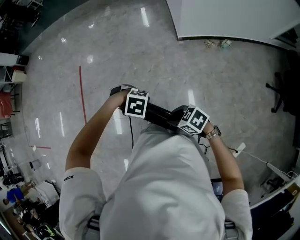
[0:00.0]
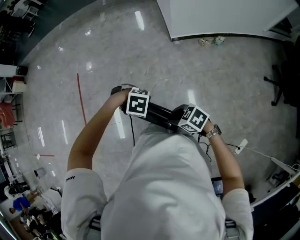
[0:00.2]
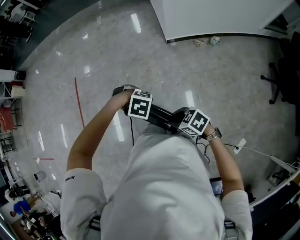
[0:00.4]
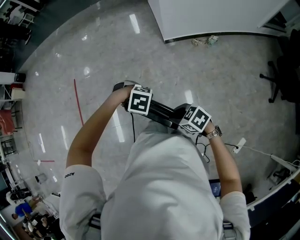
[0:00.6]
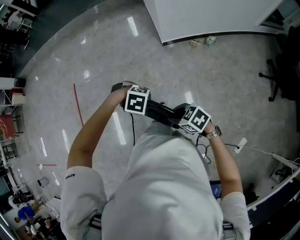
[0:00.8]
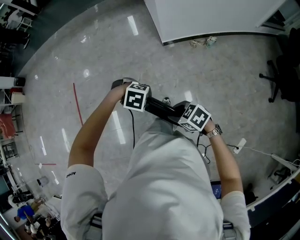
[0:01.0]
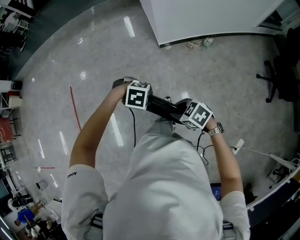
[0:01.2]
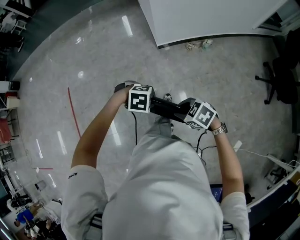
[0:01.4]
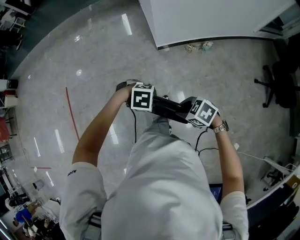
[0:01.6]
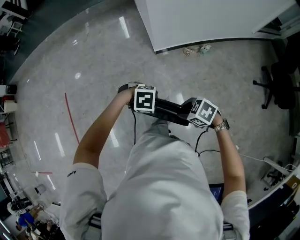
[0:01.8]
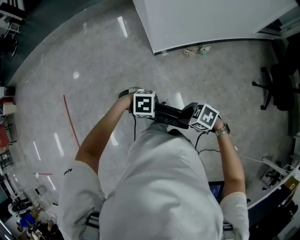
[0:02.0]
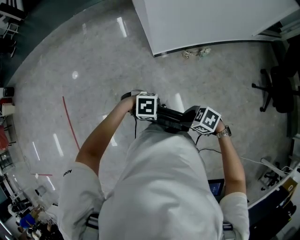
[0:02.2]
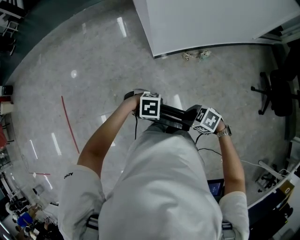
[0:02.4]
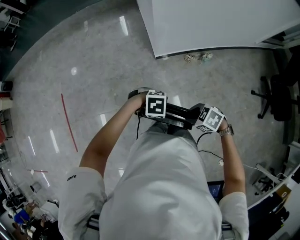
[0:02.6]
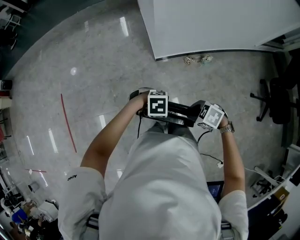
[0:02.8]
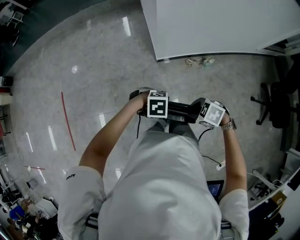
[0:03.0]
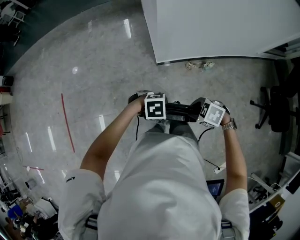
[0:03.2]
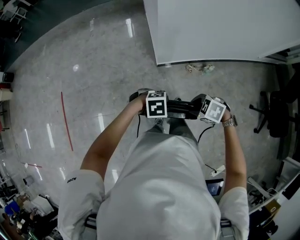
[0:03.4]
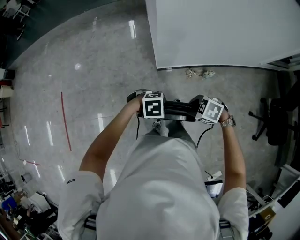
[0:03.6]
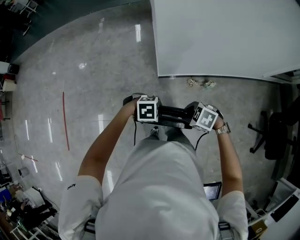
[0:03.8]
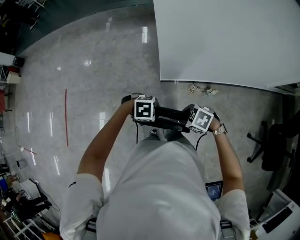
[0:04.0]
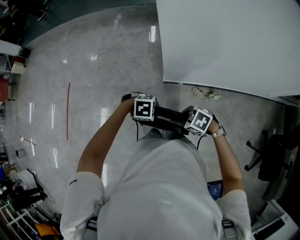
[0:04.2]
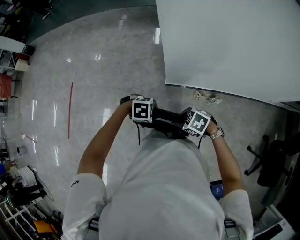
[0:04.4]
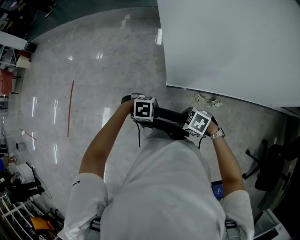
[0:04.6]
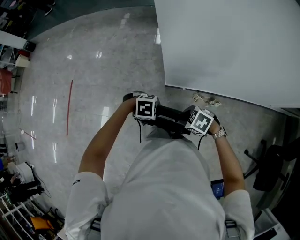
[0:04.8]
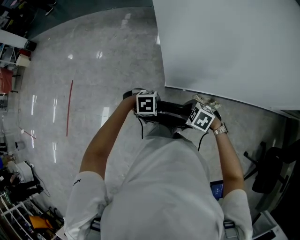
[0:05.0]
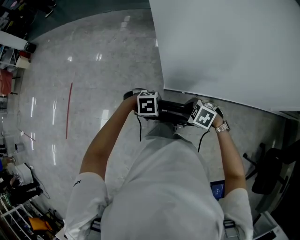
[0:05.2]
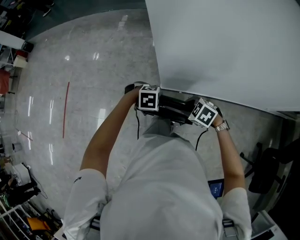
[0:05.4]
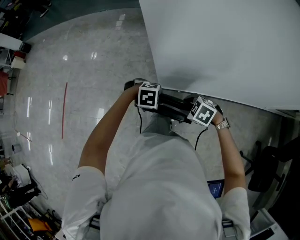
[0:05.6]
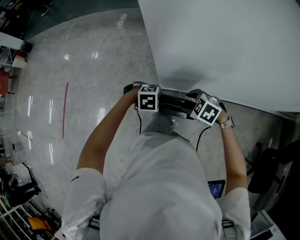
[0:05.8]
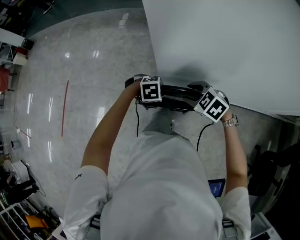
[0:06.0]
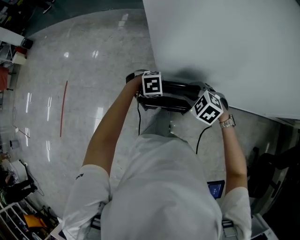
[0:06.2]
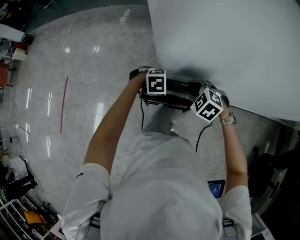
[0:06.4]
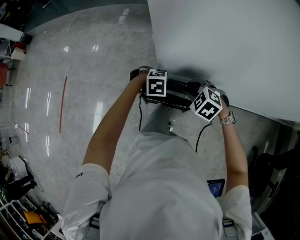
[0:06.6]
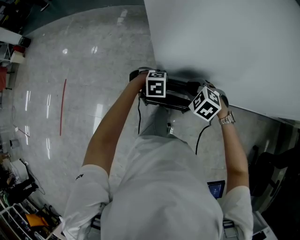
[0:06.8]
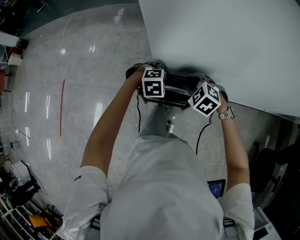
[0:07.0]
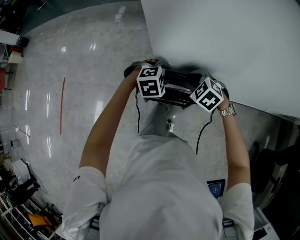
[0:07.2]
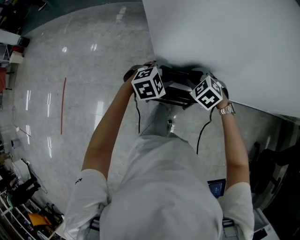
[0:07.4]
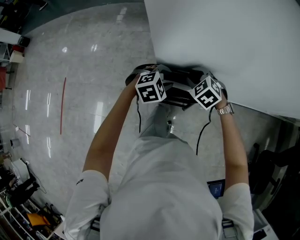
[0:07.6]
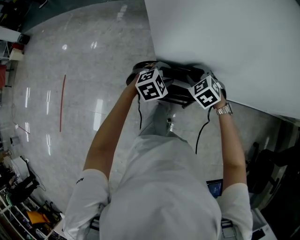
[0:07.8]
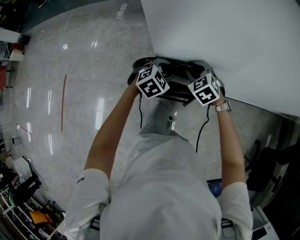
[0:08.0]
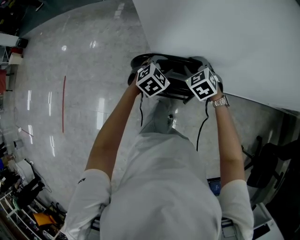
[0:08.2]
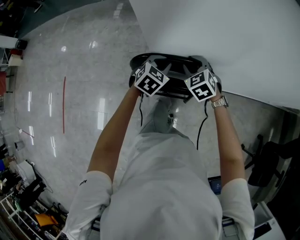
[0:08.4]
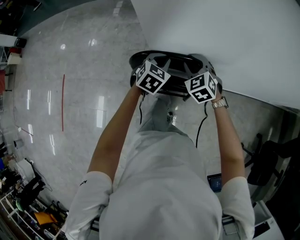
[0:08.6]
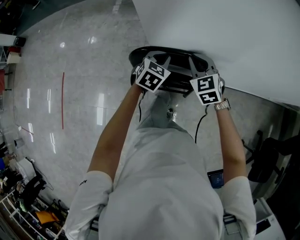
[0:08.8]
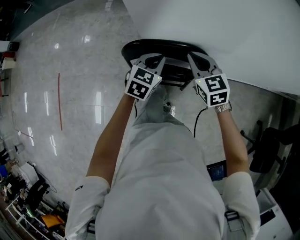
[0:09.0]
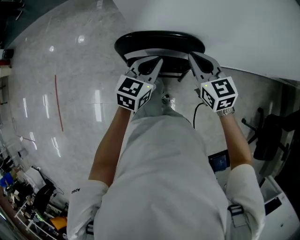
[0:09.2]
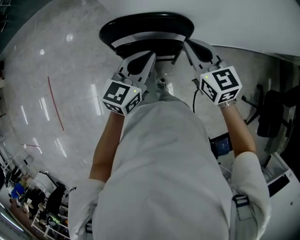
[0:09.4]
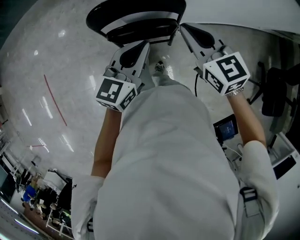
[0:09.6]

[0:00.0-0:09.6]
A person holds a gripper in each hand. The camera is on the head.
0:00.0 to 0:01.6: Both grippers move backward, approximately 25 cm.
0:01.6 to 0:03.2: Both grippers move backward, approximately 20 cm.
0:03.2 to 0:04.8: The grippers both shift backward by roughly 20 cm.
0:04.8 to 0:06.4: The left gripper ends up some 20 cm from where it was, while the right gripper moves some 20 cm, and turns by approximately 30 degrees.
0:06.4 to 0:08.0: The left gripper changes place by some 10 cm, and rotates some 30 degrees, while the right gripper changes place by some 10 cm, and turns by some 20 degrees.
0:08.0 to 0:09.6: The left gripper goes some 20 cm backward and upward, points its fingers roughly 30 degrees further upward, and closes, while the right gripper goes roughly 20 cm backward, upward and to the right, changes its angle by roughly 40 degrees, and closes its fingers.

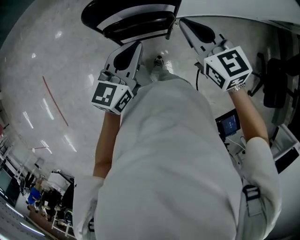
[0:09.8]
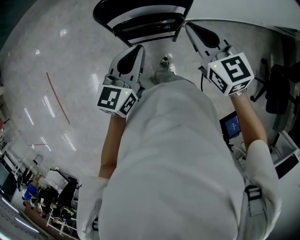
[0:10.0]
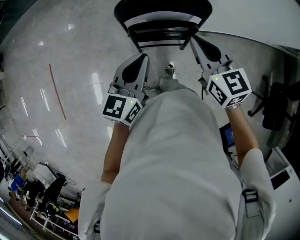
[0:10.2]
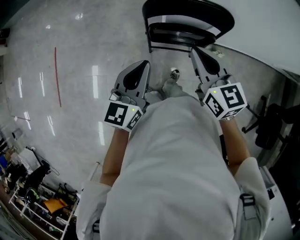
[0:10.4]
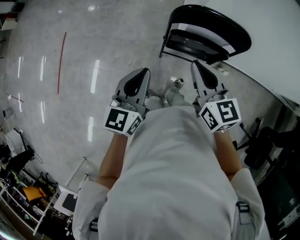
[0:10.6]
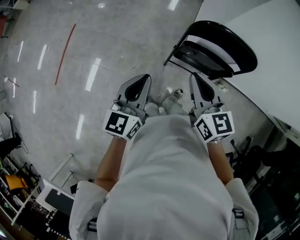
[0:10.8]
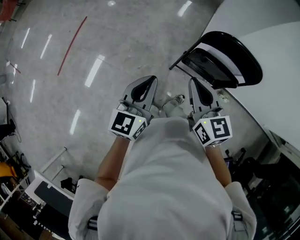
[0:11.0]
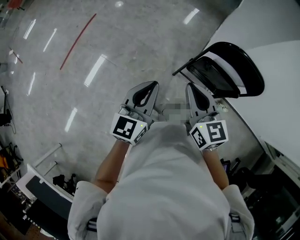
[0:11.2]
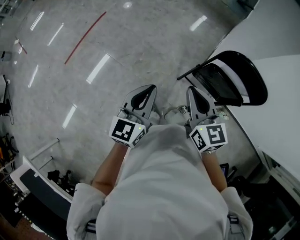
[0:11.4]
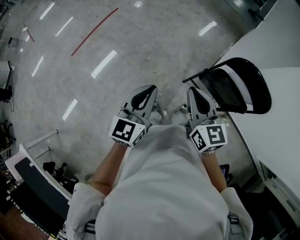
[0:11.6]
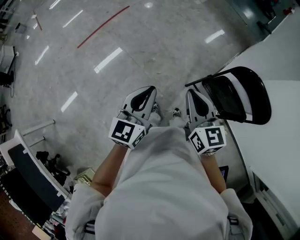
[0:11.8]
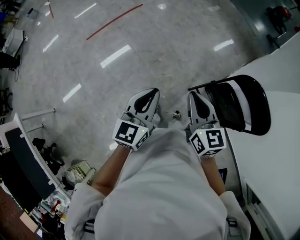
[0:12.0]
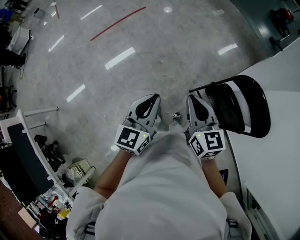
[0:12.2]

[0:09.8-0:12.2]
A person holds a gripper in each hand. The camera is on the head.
0:09.8 to 0:11.0: The right gripper changes place by roughly 35 cm, and rotates about 20 degrees. The left gripper moves about 35 cm, and turns by some 40 degrees.
0:11.0 to 0:12.2: The right gripper shifts by approximately 10 cm, and swivels approximately 30 degrees, while the left gripper moves approximately 15 cm, and turns by approximately 30 degrees.

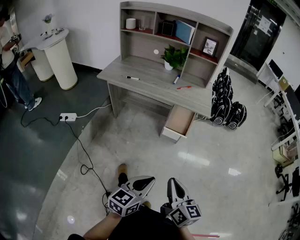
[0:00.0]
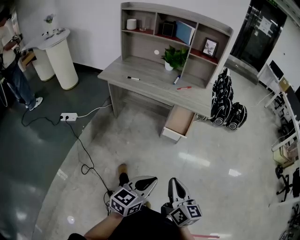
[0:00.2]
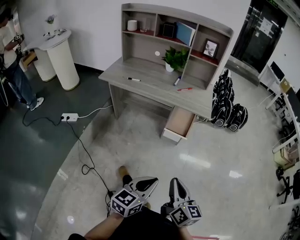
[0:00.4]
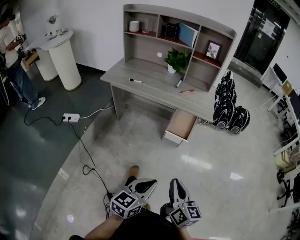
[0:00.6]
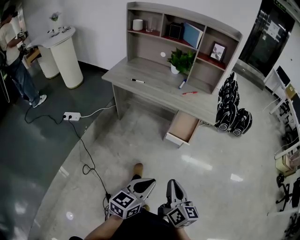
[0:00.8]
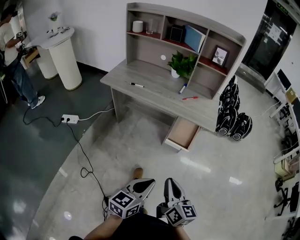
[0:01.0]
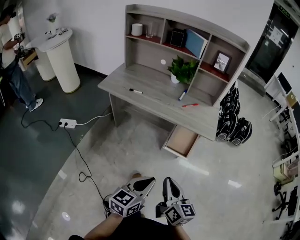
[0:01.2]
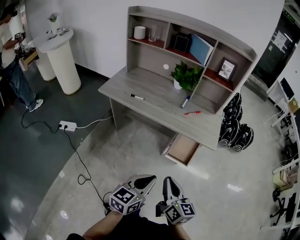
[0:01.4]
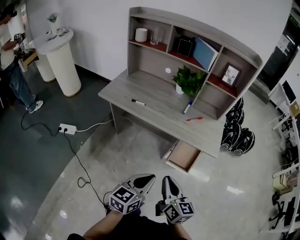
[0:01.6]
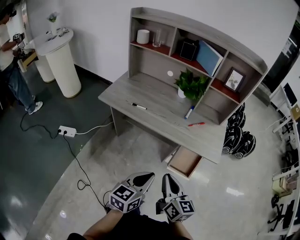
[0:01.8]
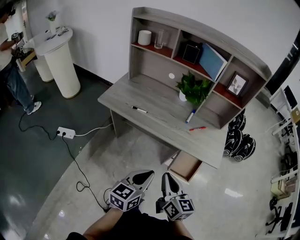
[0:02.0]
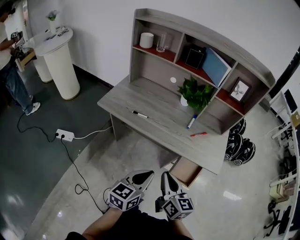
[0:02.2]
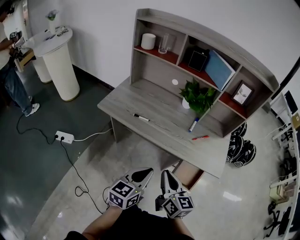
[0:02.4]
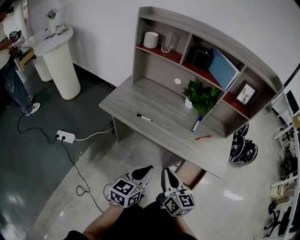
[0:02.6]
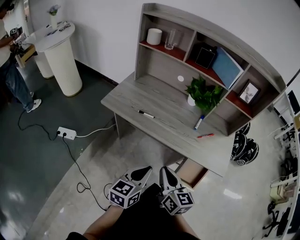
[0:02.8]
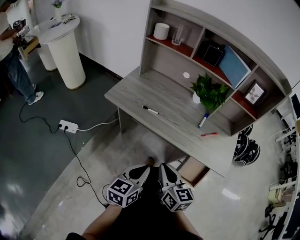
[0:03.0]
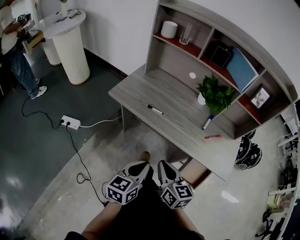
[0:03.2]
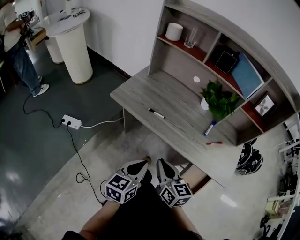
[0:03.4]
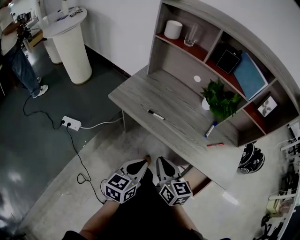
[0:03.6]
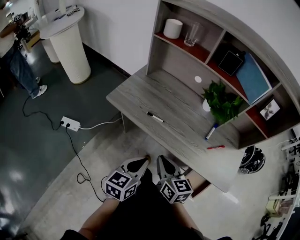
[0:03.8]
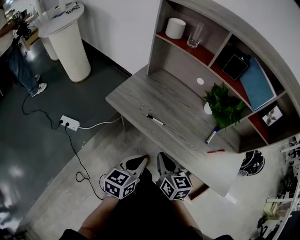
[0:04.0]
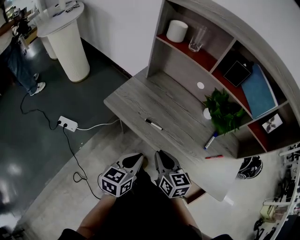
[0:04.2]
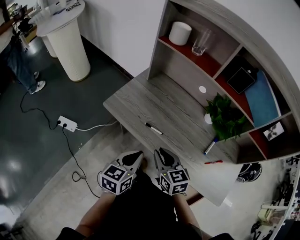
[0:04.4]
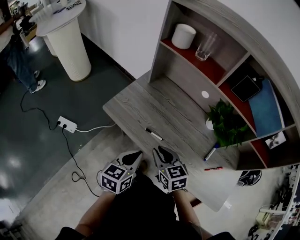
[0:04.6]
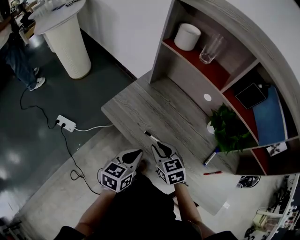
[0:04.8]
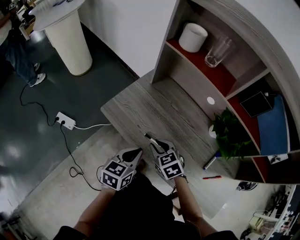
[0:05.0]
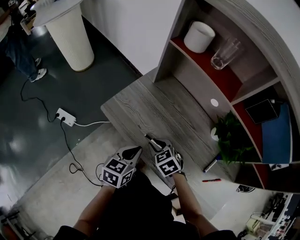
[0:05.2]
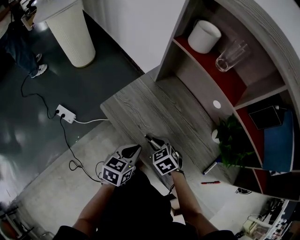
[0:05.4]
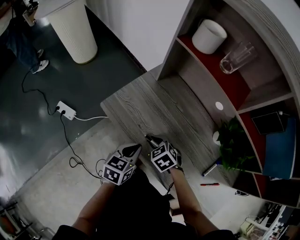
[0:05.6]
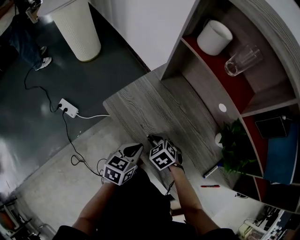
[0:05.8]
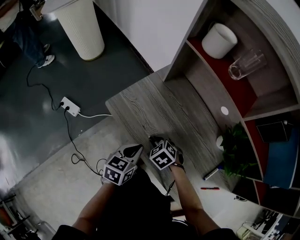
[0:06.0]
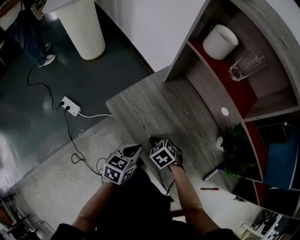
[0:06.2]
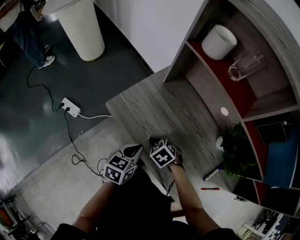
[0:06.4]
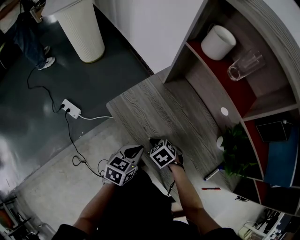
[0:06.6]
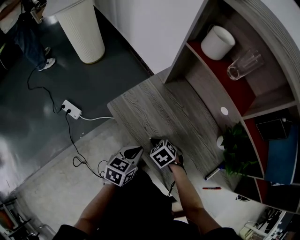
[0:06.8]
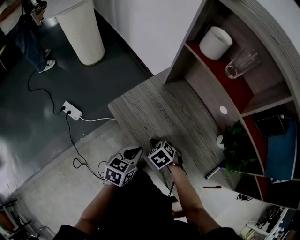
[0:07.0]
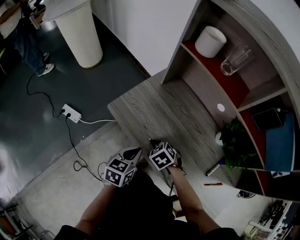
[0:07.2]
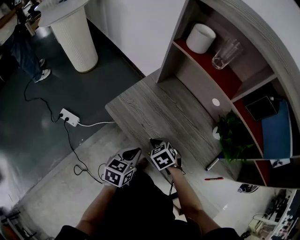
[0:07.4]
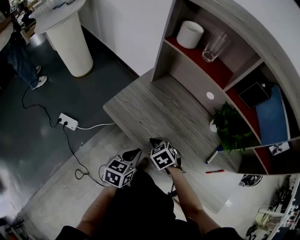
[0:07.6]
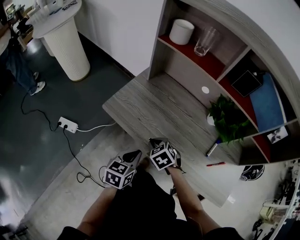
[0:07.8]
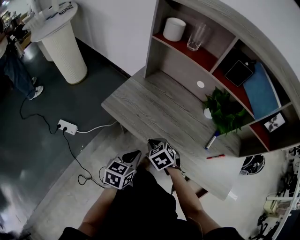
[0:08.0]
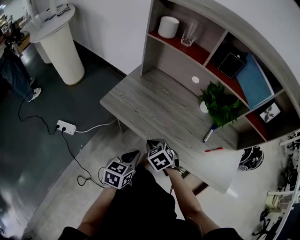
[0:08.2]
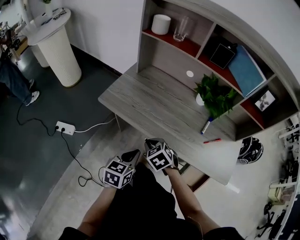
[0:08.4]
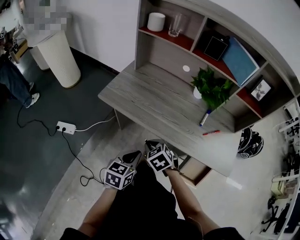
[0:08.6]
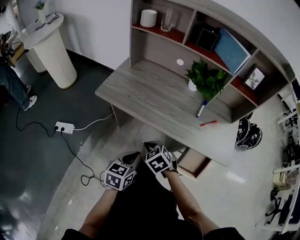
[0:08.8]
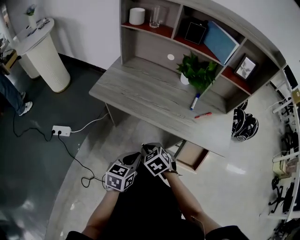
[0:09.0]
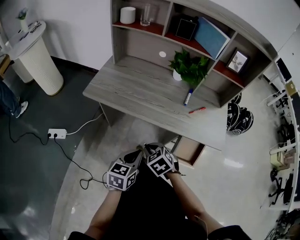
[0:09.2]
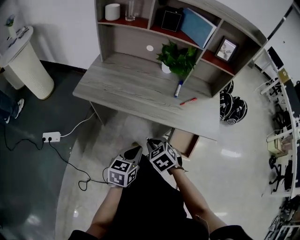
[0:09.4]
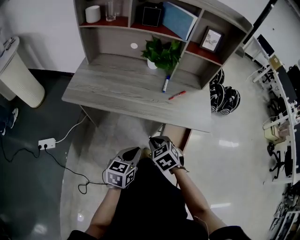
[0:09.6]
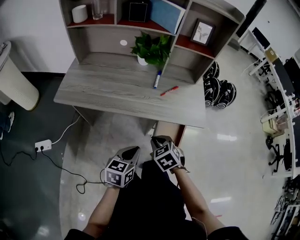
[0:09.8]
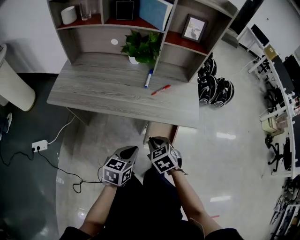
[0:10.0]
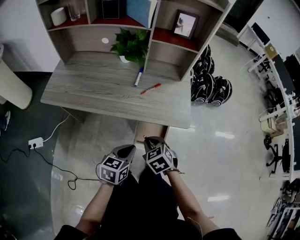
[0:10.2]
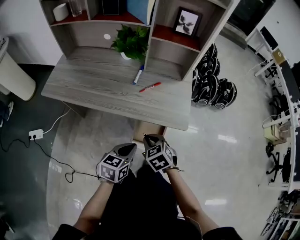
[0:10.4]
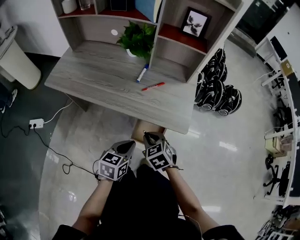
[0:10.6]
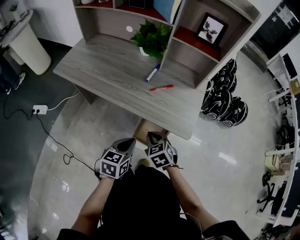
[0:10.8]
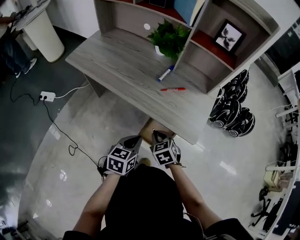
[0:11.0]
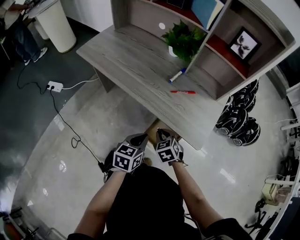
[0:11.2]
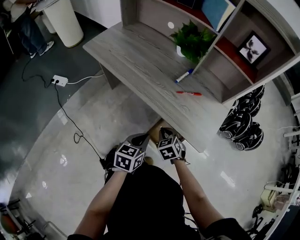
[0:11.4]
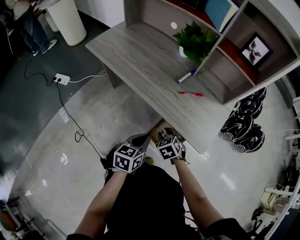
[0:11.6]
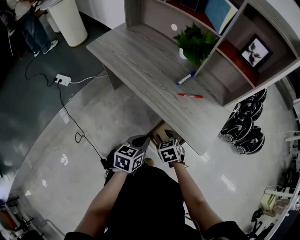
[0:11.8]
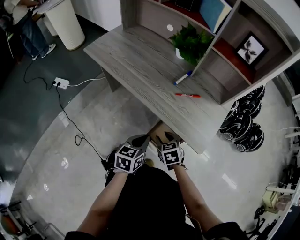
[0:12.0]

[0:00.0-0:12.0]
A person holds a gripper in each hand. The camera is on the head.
0:00.0 to 0:01.6: The right gripper moves forward and to the left, about 25 cm; the left gripper moves forward, roughly 25 cm.
0:01.6 to 0:03.0: The two grippers go some 20 cm forward and to the left.
0:03.0 to 0:04.4: The grippers both shift forward by roughly 20 cm. The right gripper turns by about 20 degrees.
0:04.4 to 0:06.0: The right gripper travels downward and forward by roughly 20 cm, and points its fingers about 40 degrees further downward. Meanwhile the left gripper goes approximately 15 cm forward and downward.
0:06.0 to 0:07.6: The left gripper travels backward by roughly 5 cm. The right gripper shifts by roughly 5 cm.
0:07.6 to 0:09.0: The two grippers go approximately 25 cm backward.
0:09.0 to 0:10.4: Both grippers travel together to the right, some 30 cm.
0:10.4 to 0:12.0: The left gripper moves downward, about 5 cm, and changes its angle by roughly 30 degrees. The right gripper travels downward by roughly 10 cm, and opens.
